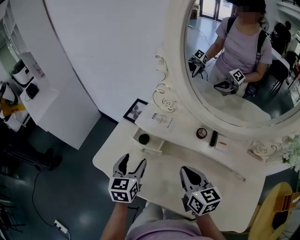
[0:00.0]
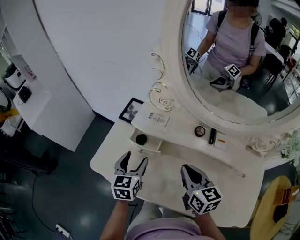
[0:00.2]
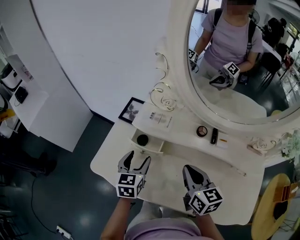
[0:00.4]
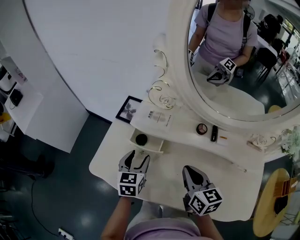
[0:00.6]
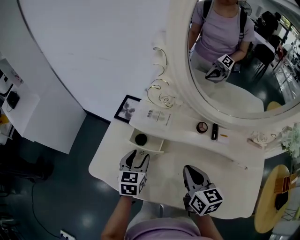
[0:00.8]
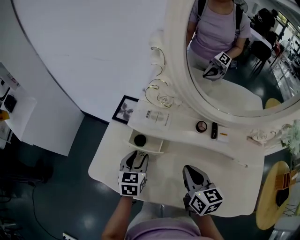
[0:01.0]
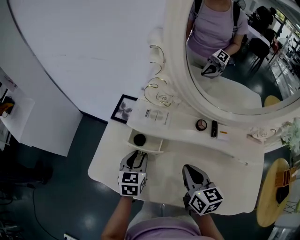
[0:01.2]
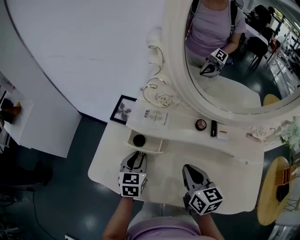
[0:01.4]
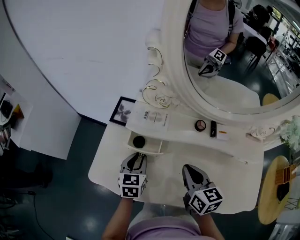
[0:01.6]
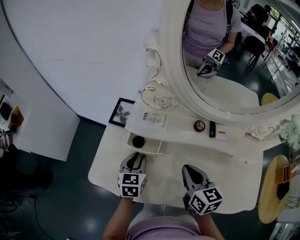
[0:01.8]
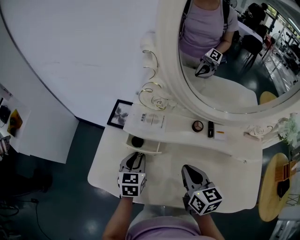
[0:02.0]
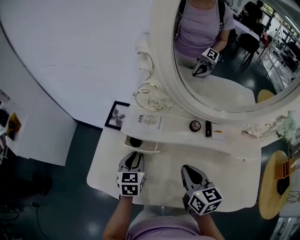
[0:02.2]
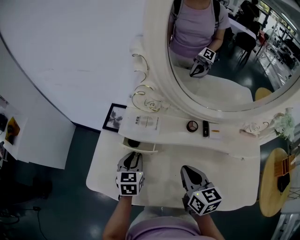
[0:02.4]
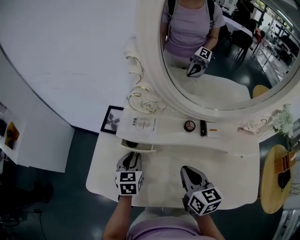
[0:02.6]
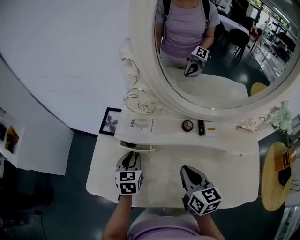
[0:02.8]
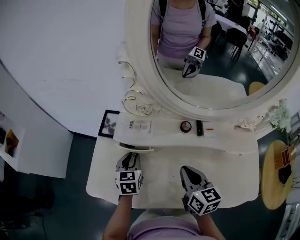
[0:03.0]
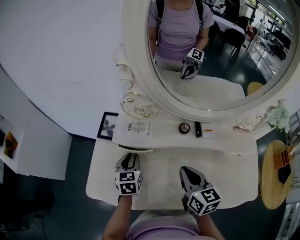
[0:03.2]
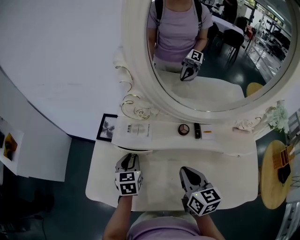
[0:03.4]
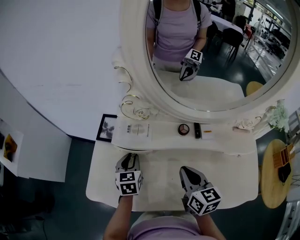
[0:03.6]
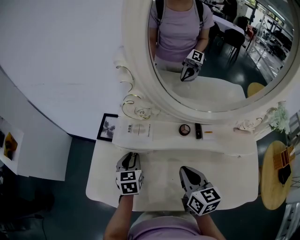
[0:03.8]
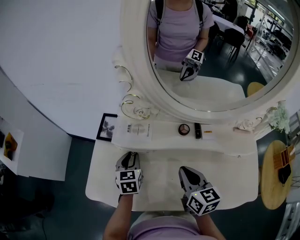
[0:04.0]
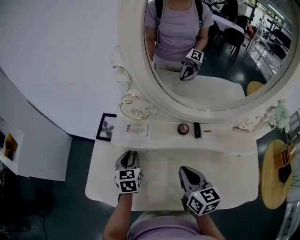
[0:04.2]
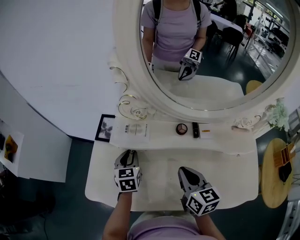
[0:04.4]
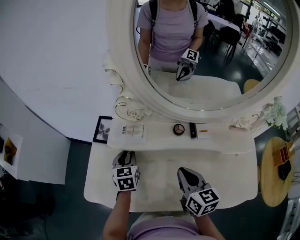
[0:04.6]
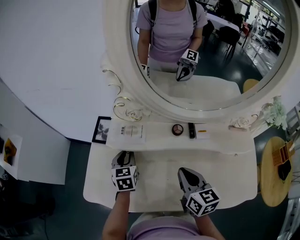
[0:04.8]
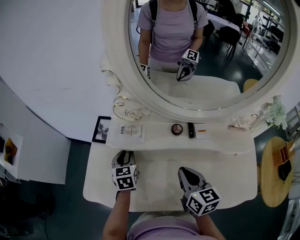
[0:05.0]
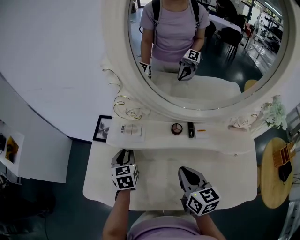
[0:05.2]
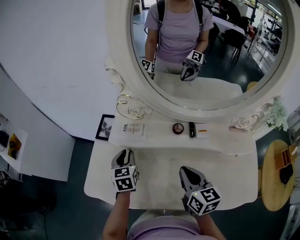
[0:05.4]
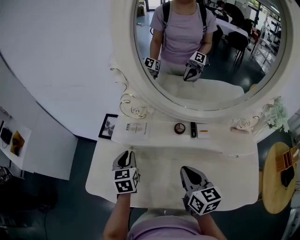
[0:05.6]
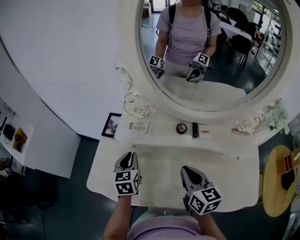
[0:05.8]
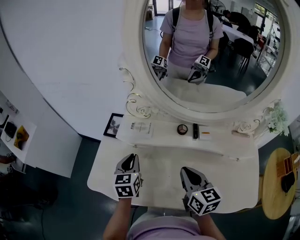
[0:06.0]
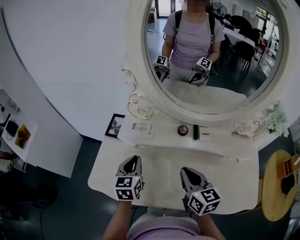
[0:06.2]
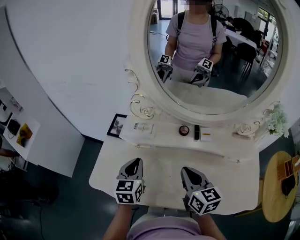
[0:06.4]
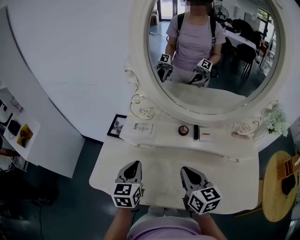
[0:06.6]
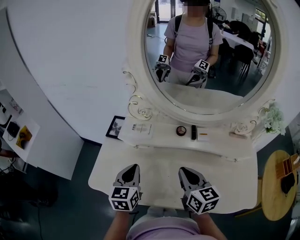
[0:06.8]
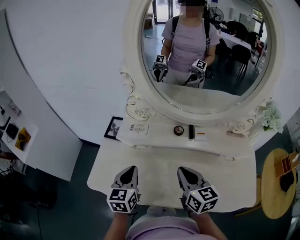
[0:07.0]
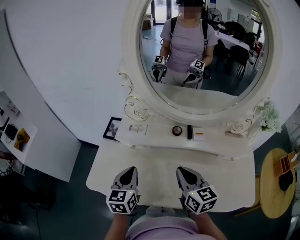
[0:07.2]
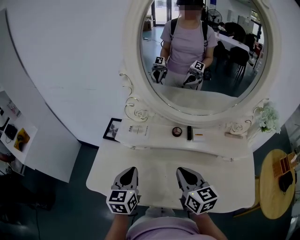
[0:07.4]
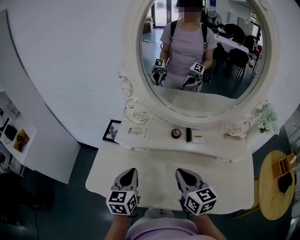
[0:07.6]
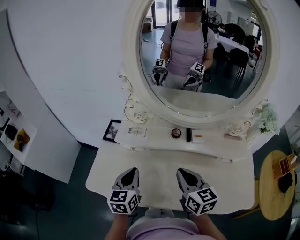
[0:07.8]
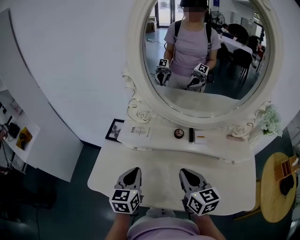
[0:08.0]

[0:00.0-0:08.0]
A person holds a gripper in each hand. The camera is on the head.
0:00.0 to 0:01.6: The left gripper heads downward and forward, covering approximately 10 cm, and closes.
0:01.6 to 0:03.2: The left gripper moves some 5 cm.
0:03.2 to 0:04.8: The grippers make only small movements.
0:04.8 to 0:06.4: The left gripper travels backward and upward by roughly 15 cm.
0:06.4 to 0:08.0: The grippers make only small movements.

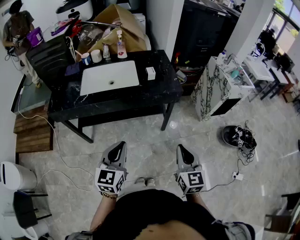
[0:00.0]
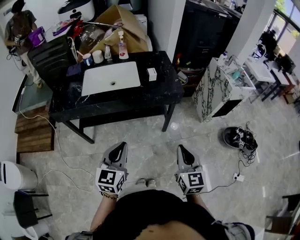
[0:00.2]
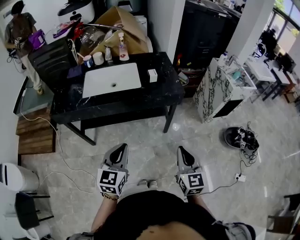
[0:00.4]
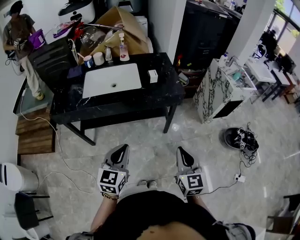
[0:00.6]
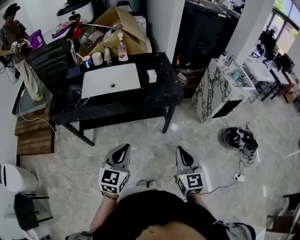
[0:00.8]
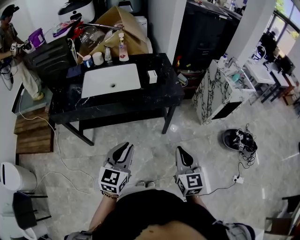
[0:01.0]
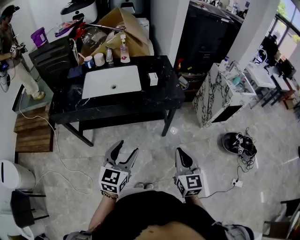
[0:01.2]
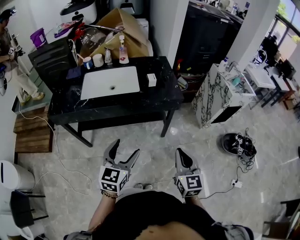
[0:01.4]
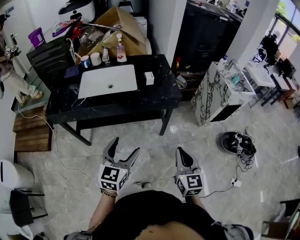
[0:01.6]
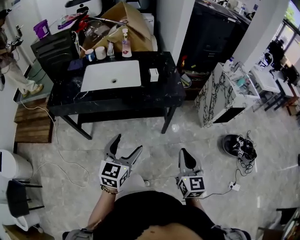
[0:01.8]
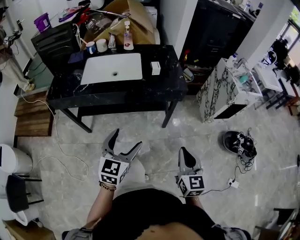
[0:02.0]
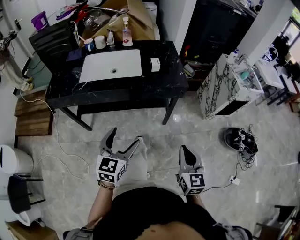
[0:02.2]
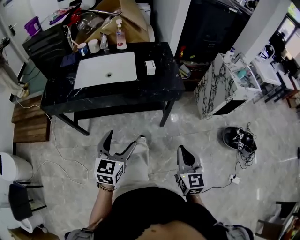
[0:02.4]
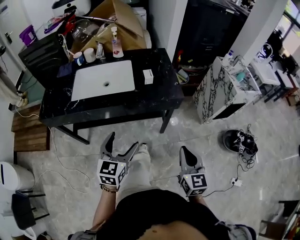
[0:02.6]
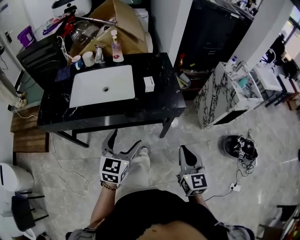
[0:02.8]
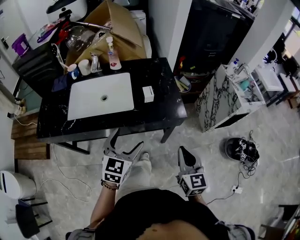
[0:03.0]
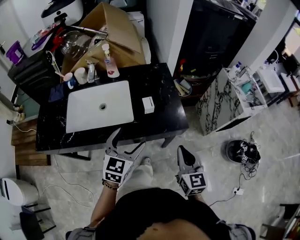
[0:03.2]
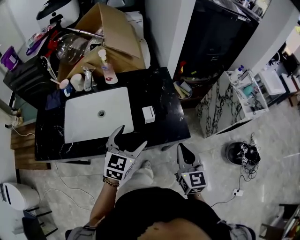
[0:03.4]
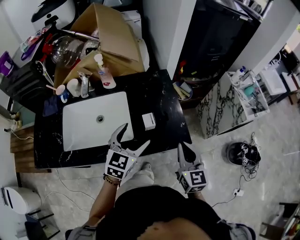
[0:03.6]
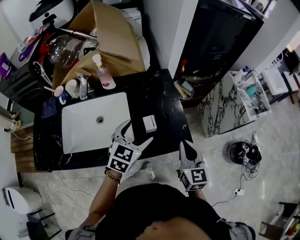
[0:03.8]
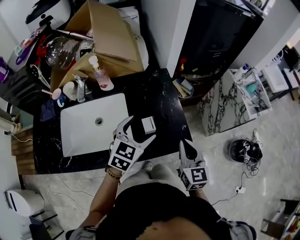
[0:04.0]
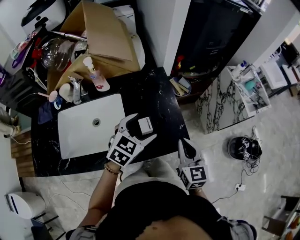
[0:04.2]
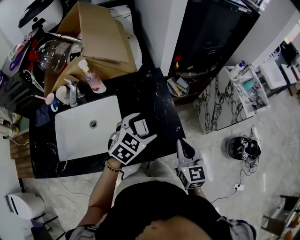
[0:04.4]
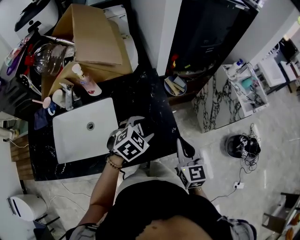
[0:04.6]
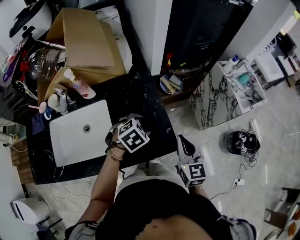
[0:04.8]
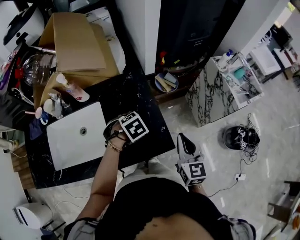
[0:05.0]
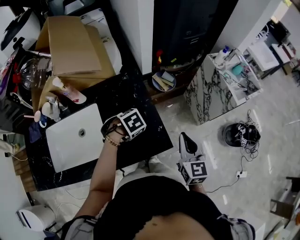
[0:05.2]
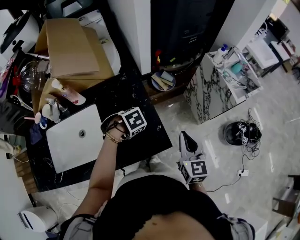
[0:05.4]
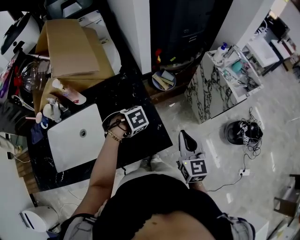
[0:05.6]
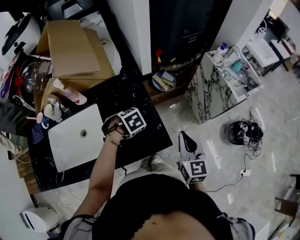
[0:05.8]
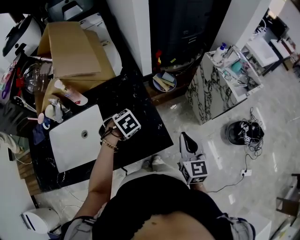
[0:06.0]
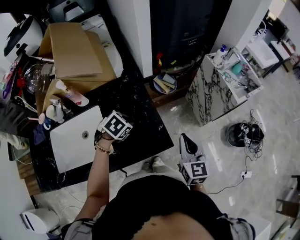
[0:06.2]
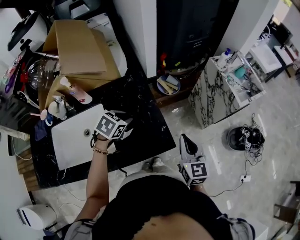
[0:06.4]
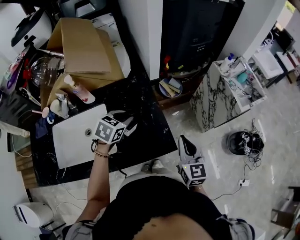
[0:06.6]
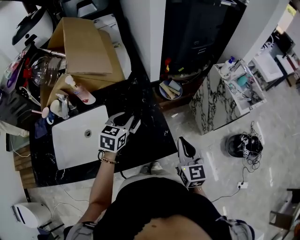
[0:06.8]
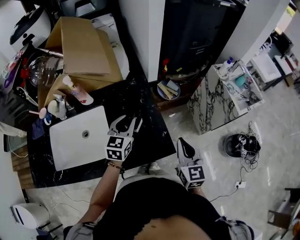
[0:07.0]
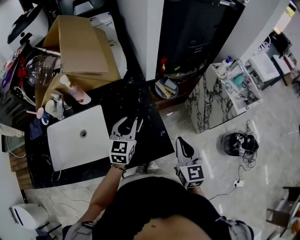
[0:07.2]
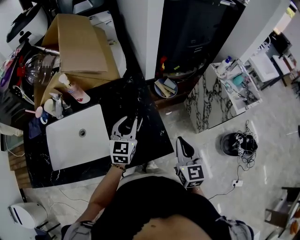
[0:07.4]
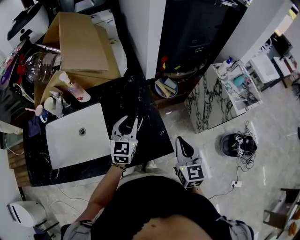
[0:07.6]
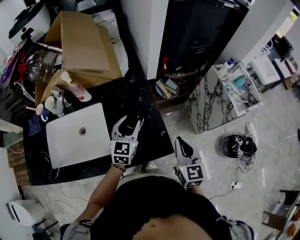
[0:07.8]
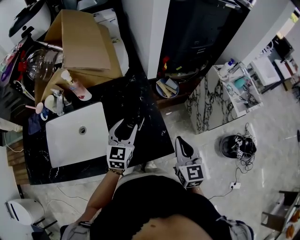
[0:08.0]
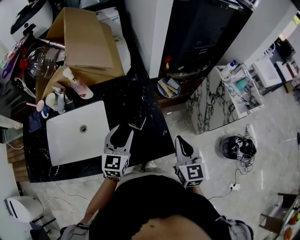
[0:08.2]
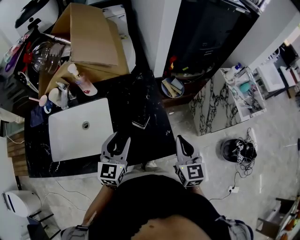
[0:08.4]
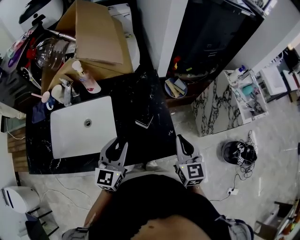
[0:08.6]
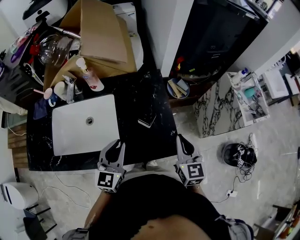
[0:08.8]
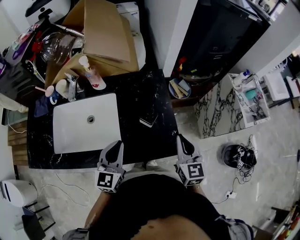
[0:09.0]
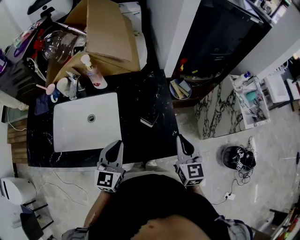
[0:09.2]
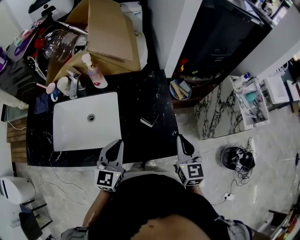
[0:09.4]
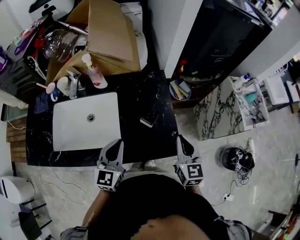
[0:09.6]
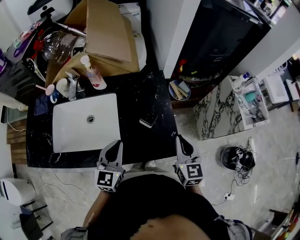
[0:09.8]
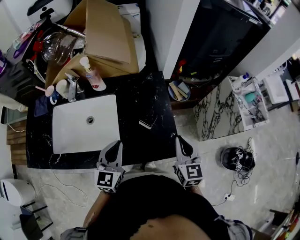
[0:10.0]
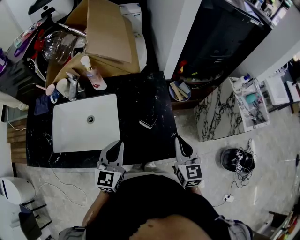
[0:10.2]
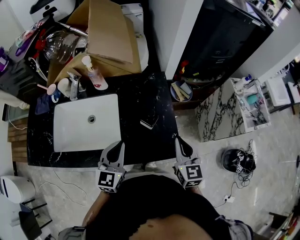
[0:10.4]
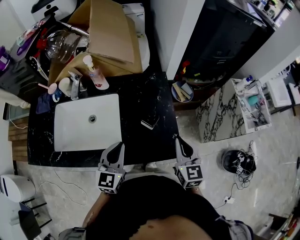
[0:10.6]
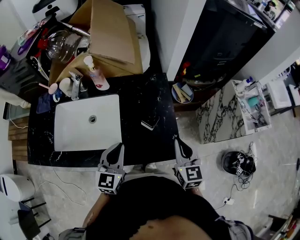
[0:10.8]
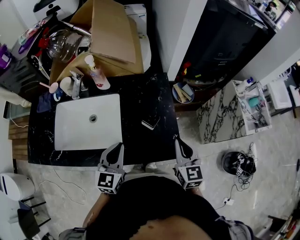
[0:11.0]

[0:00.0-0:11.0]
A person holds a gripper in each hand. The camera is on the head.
0:00.0 to 0:01.6: The left gripper changes place by some 5 cm, and opens its fingers.
0:01.6 to 0:03.2: Both grippers move forward, some 30 cm.
0:03.2 to 0:04.8: Both grippers move forward, roughly 20 cm. The left gripper points its fingers approximately 40 degrees further downward, and closes its fingers.
0:04.8 to 0:06.2: The right gripper moves roughly 5 cm, while the left gripper closes its fingers.
0:06.2 to 0:07.8: The left gripper heads upward, covering about 5 cm, and angles its fingers upward, by roughly 50 degrees.
0:07.8 to 0:09.4: The right gripper ends up roughly 5 cm from where it was. Meanwhile the left gripper moves backward and to the left, about 15 cm, and closes.
0:09.4 to 0:11.0: The grippers move only a little.

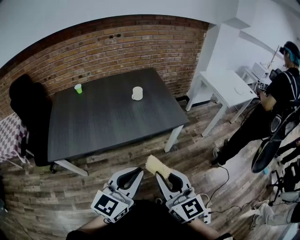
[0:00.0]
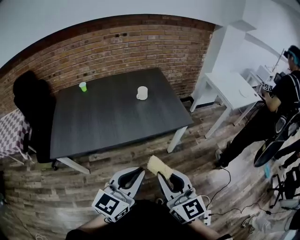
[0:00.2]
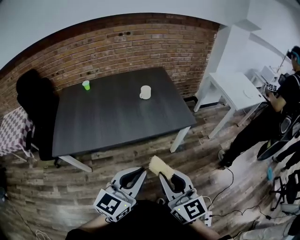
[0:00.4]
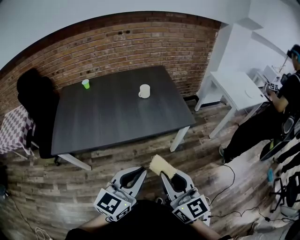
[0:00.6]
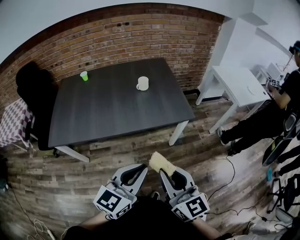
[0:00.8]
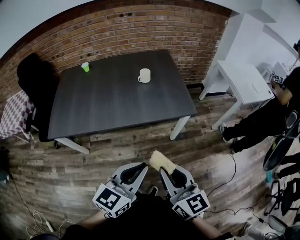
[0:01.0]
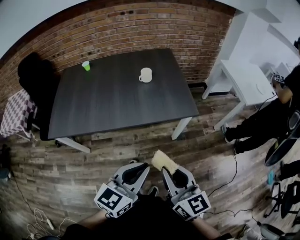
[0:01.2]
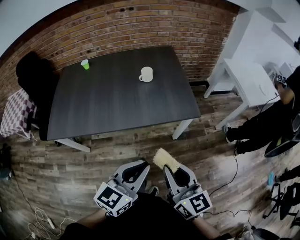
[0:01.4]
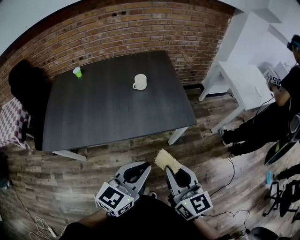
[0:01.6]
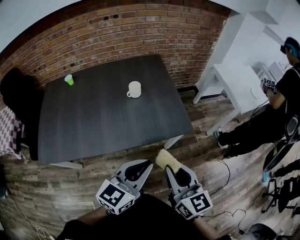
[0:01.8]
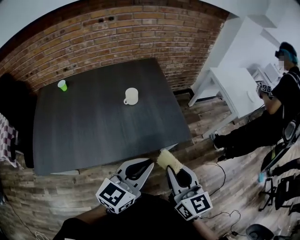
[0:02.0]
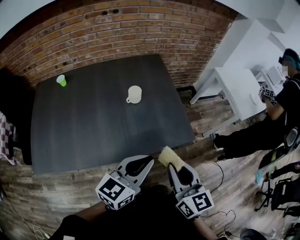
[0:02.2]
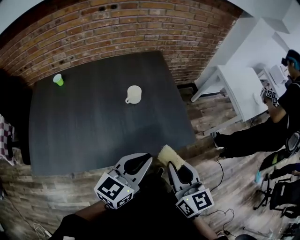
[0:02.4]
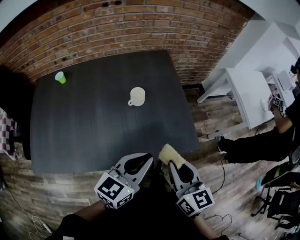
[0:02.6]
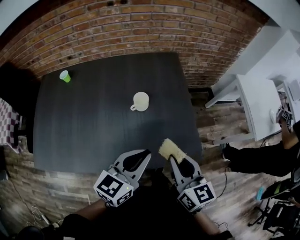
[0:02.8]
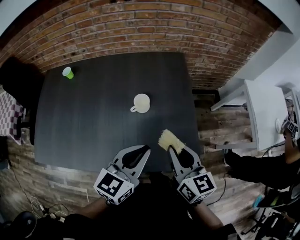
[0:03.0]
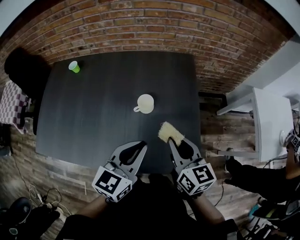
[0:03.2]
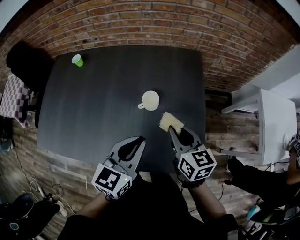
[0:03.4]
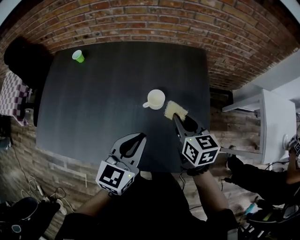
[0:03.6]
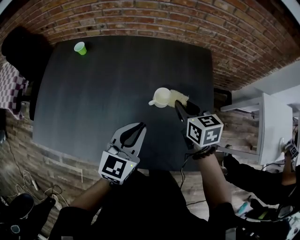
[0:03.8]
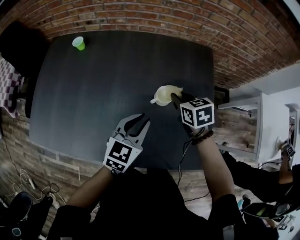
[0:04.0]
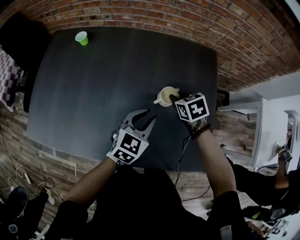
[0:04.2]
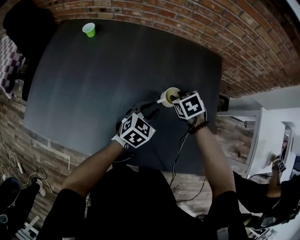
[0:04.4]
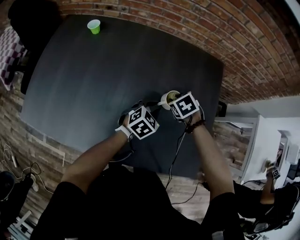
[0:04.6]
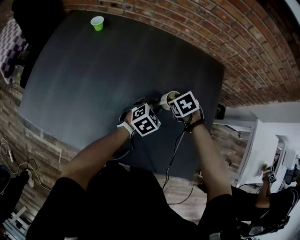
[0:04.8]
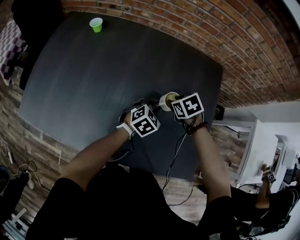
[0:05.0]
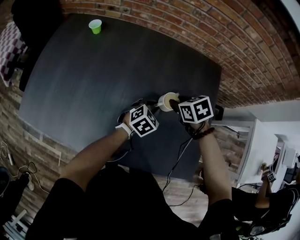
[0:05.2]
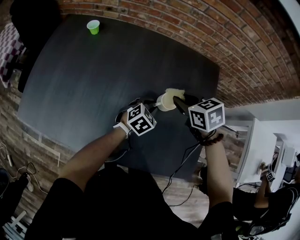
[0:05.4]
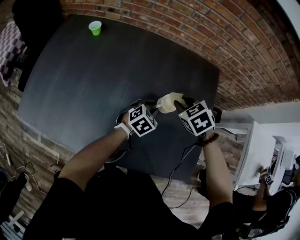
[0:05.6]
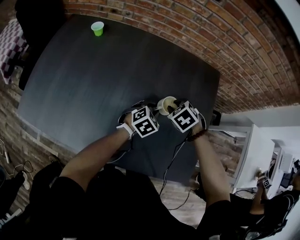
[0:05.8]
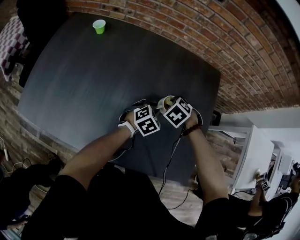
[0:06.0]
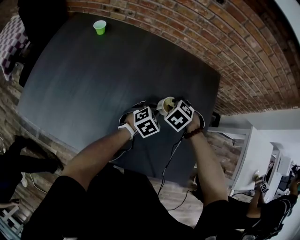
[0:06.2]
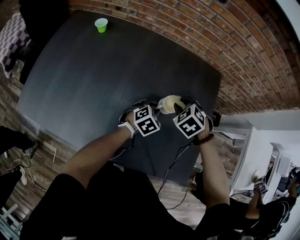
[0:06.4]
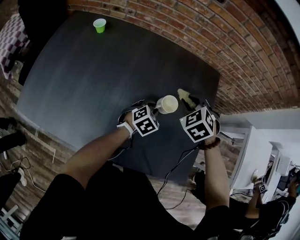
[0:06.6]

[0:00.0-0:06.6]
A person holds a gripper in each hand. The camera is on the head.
0:00.0 to 0:01.6: The two grippers go approximately 20 cm forward, to the right and downward.
0:01.6 to 0:03.2: Both grippers are carried forward, approximately 50 cm.
0:03.2 to 0:05.0: The right gripper moves forward, downward and to the left, approximately 30 cm, and tilts its fingers roughly 50 degrees downward, while the left gripper is displaced downward and forward by roughly 30 cm, and rotates approximately 30 degrees.
0:05.0 to 0:06.6: The right gripper goes up and down, some 10 cm each way, reversing 2 times, and changes its angle by roughly 40 degrees.
